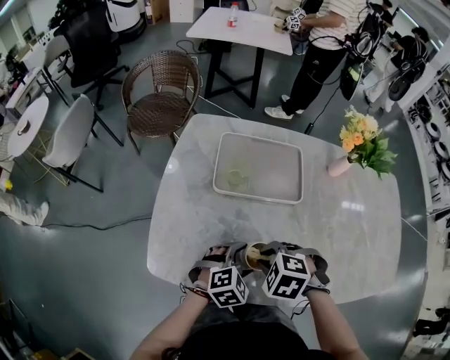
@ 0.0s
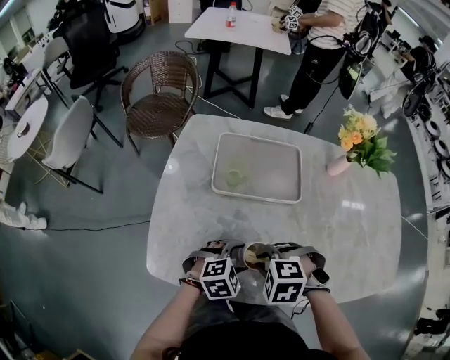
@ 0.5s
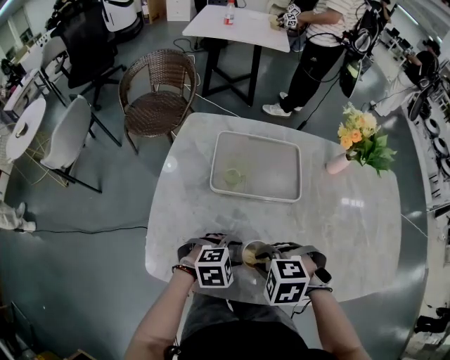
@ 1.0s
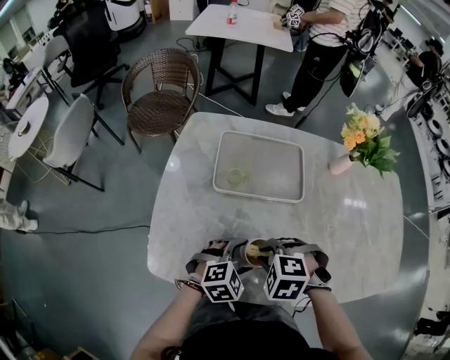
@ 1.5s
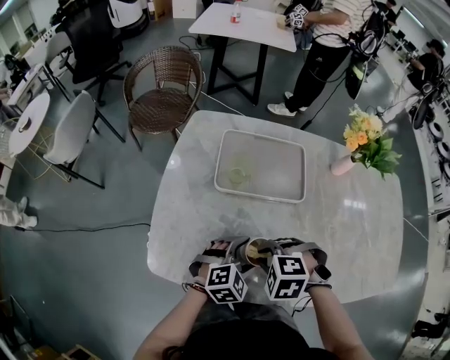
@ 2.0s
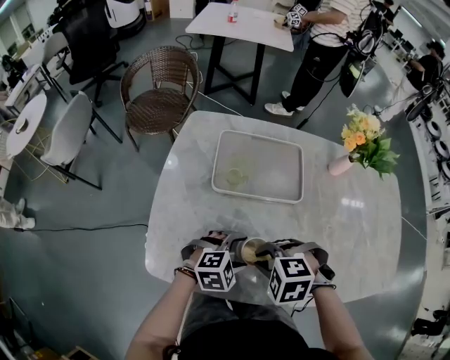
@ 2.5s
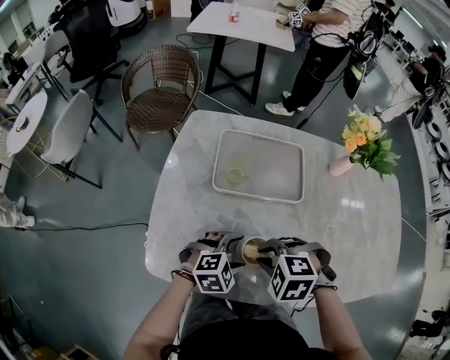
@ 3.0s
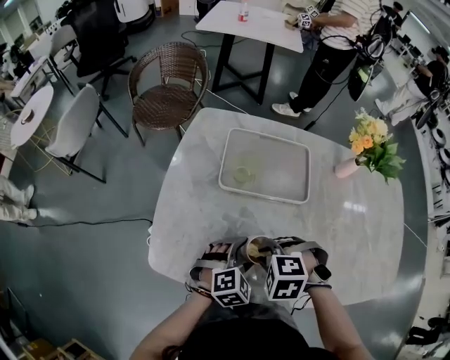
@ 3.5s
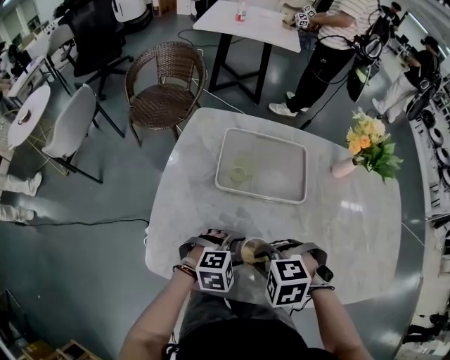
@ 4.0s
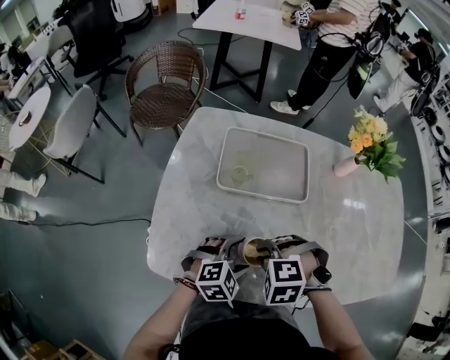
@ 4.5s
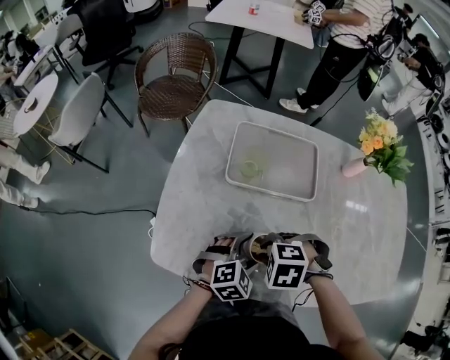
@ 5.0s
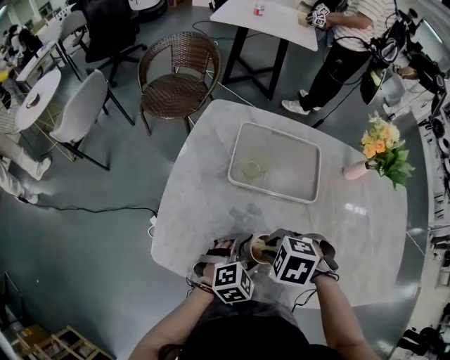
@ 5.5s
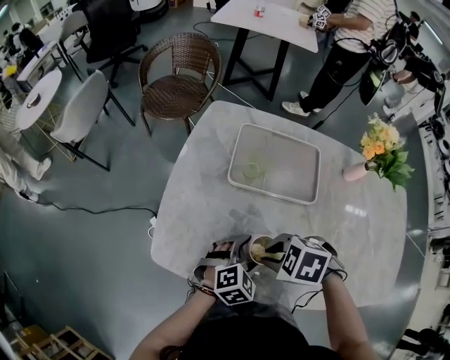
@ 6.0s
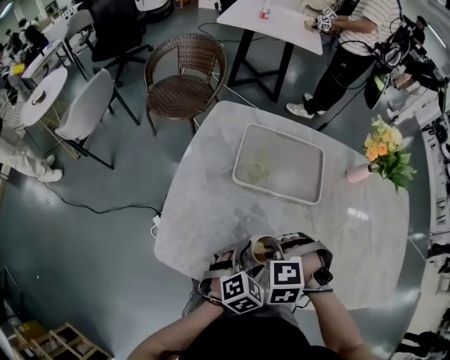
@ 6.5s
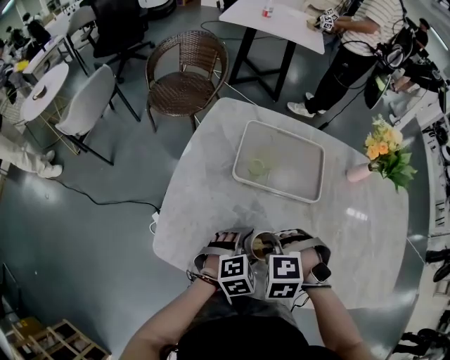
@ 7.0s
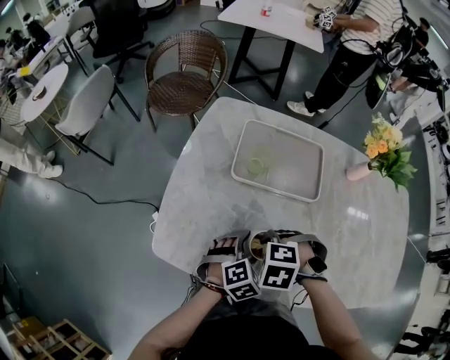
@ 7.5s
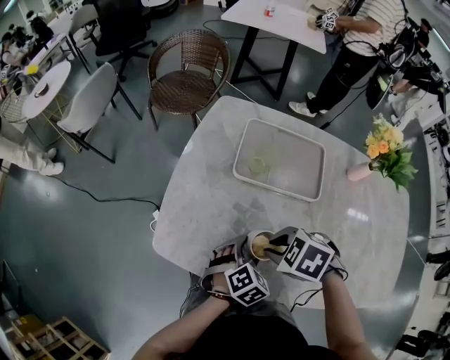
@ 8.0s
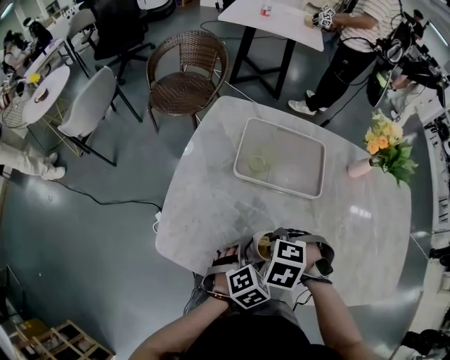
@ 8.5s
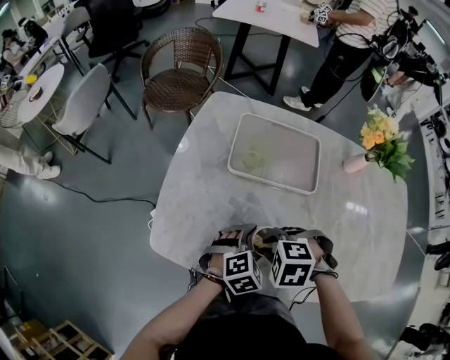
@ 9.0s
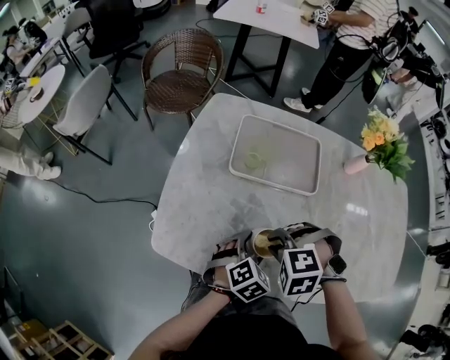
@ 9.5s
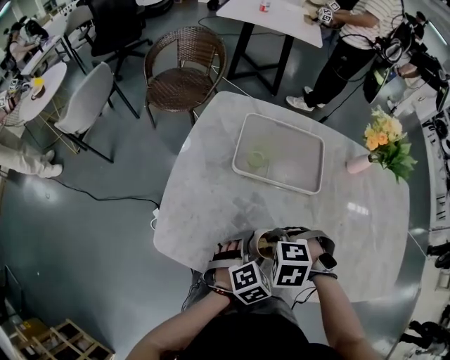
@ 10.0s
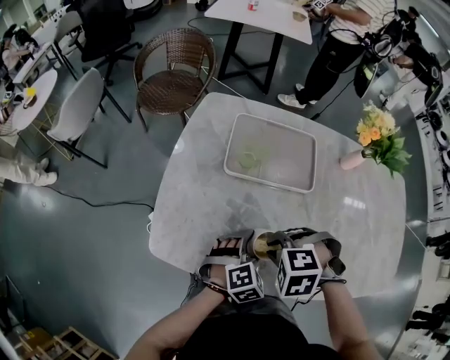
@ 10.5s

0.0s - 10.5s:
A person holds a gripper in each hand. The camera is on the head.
0.0s - 4.0s: The grippers make only small movements.
4.0s - 6.5s: The left gripper changes its angle by approximately 40 degrees.

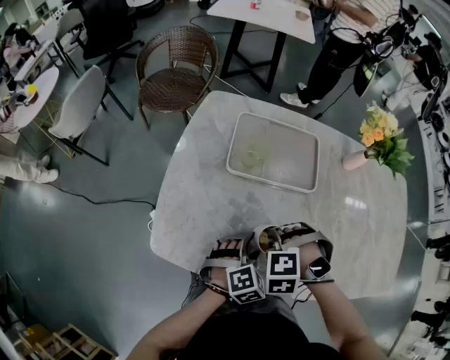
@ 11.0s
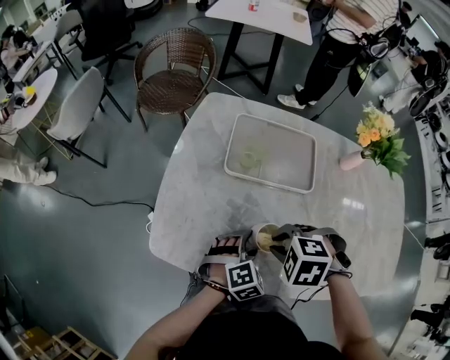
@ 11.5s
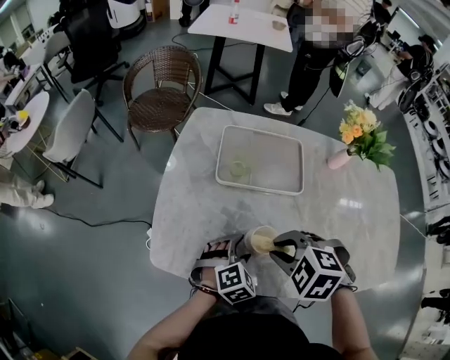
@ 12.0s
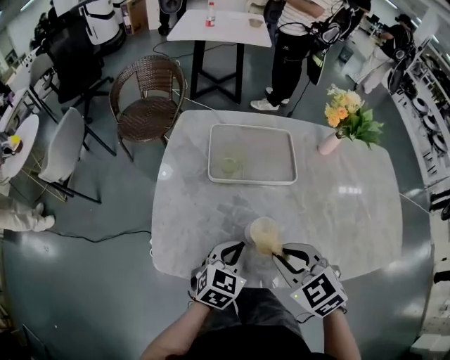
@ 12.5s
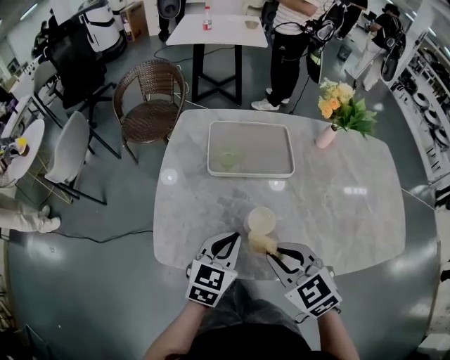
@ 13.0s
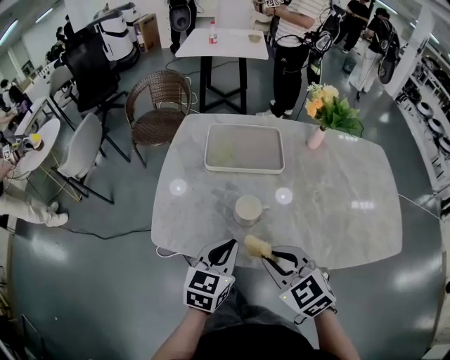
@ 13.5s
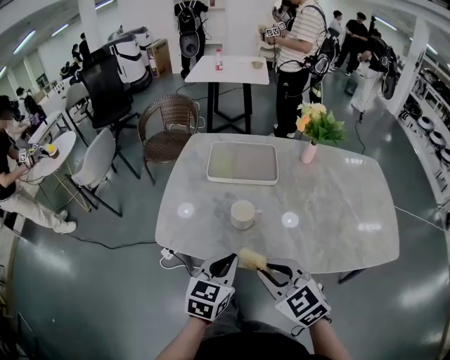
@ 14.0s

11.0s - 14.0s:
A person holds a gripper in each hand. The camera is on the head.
11.0s - 12.5s: The left gripper travels upward by approximately 5 cm, changes its angle by approximately 30 degrees, and closes its fingers; the right gripper heads upward, covering about 10 cm, and twists approximately 60 degrees clockwise, seen from behind.
12.5s - 14.0s: The right gripper heads backward, covering roughly 15 cm; the left gripper is displaced backward and upward by roughly 15 cm.

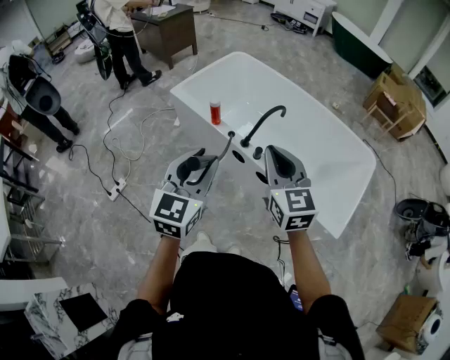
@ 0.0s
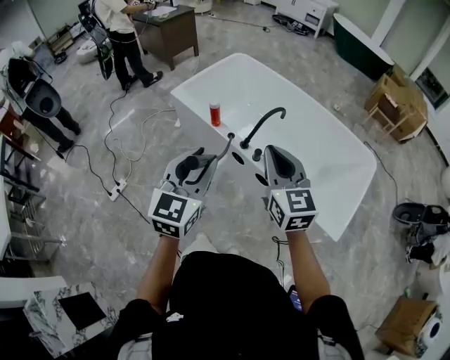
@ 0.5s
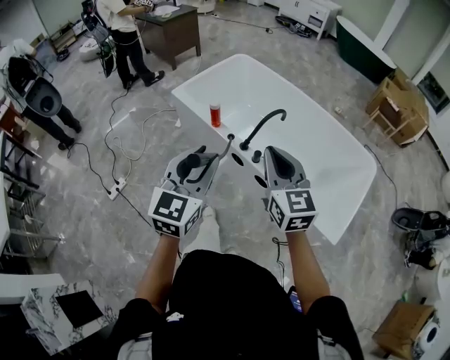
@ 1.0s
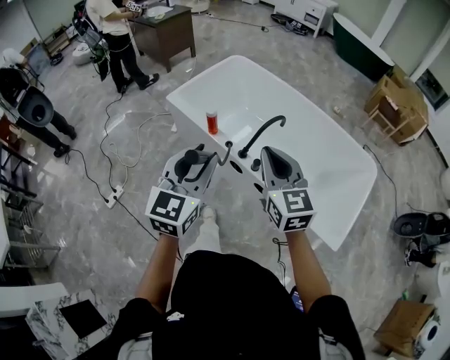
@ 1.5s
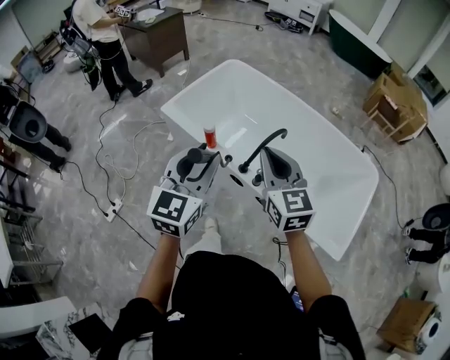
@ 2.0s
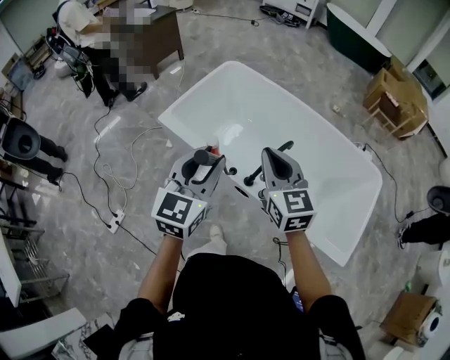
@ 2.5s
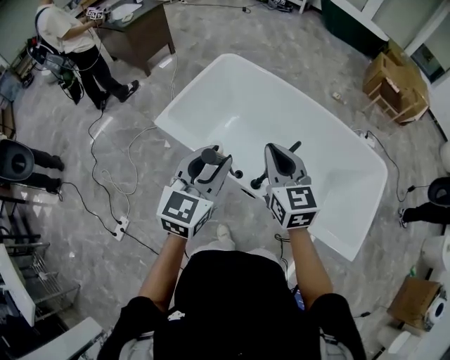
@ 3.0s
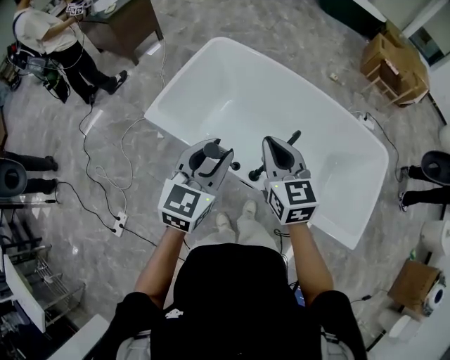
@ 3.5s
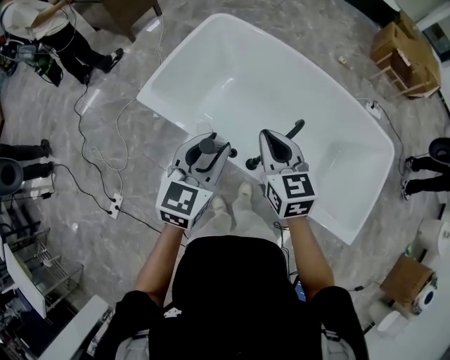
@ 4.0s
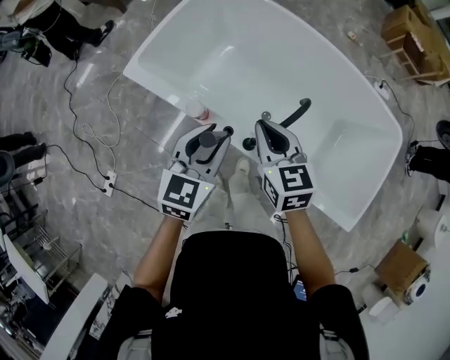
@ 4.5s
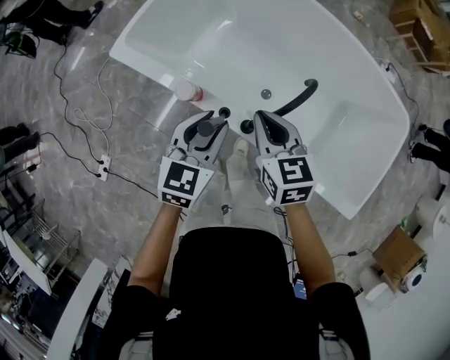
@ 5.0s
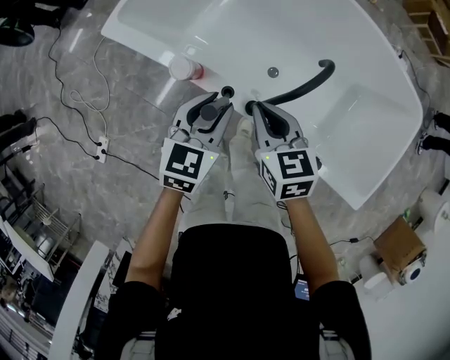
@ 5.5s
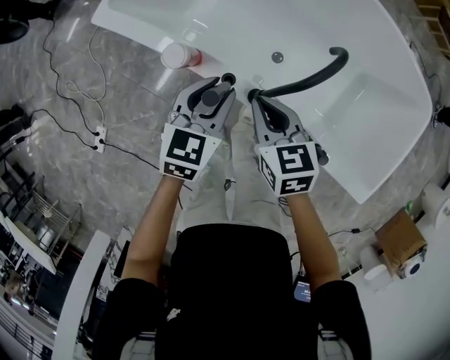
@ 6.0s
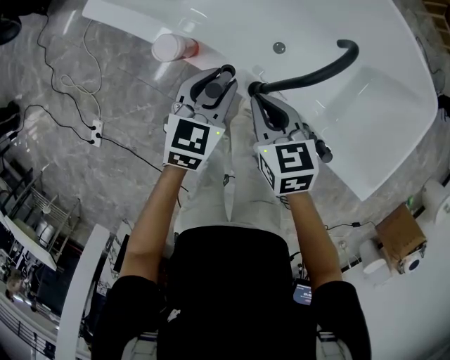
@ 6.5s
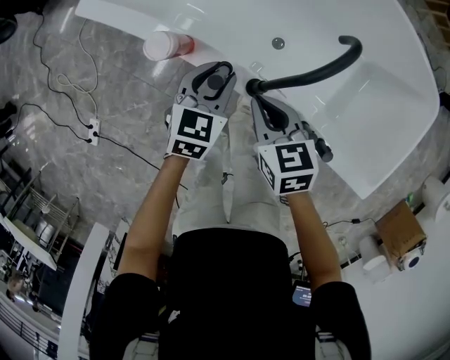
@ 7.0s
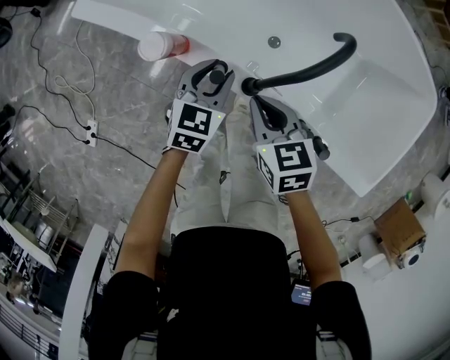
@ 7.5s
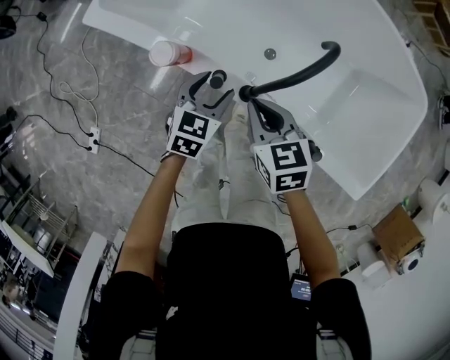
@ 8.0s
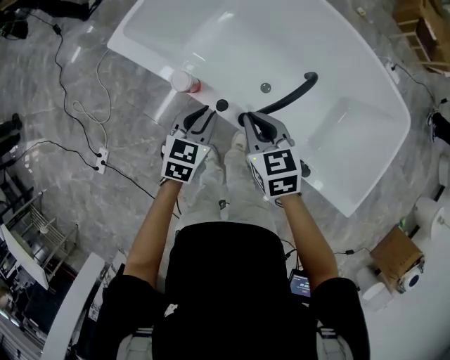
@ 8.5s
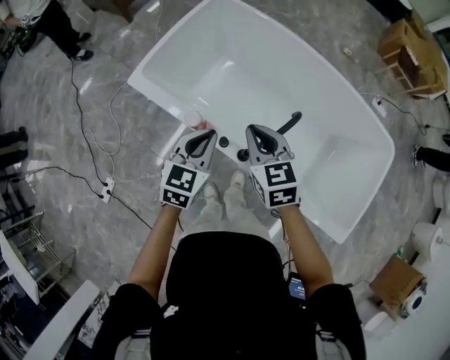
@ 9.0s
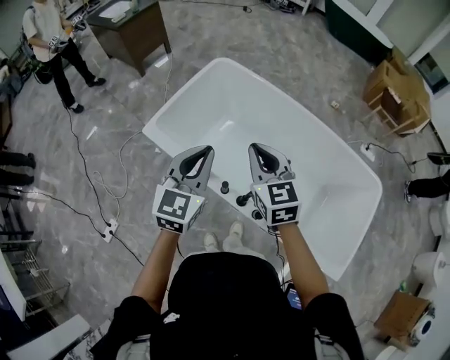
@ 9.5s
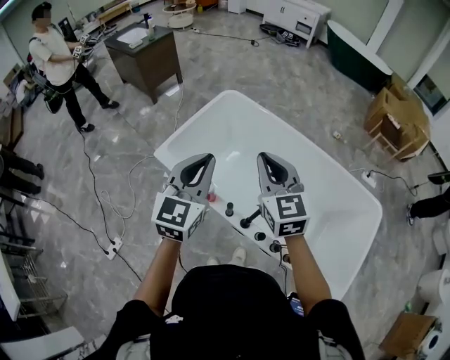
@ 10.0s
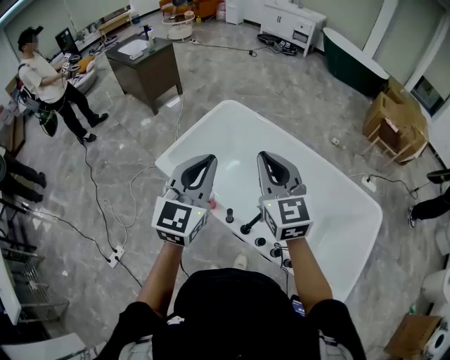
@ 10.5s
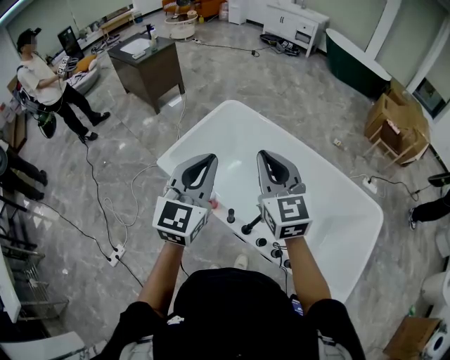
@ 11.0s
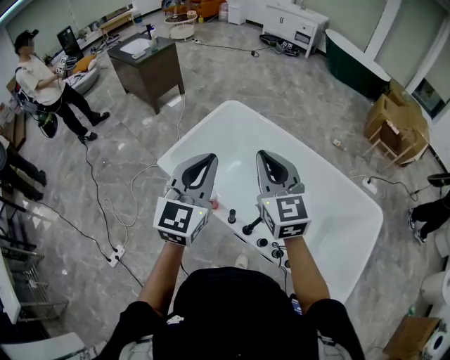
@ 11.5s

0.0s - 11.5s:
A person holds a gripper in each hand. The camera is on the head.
0.0s - 2.0s: The two grippers go roughly 20 cm forward.
2.0s - 4.0s: The two grippers go approximately 25 cm forward and downward.
4.0s - 6.0s: Both grippers travel together downward, about 25 cm. The right gripper swivels approximately 20 degrees.
6.0s - 7.5s: The left gripper moves downward, about 10 cm, while the right gripper shifts roughly 5 cm downward.
7.5s - 9.5s: The two grippers go approximately 40 cm upward. The right gripper turns by roughly 30 degrees. The left gripper rotates some 30 degrees, and closes up.
9.5s - 11.5s: The grippers both shift upward by about 15 cm.

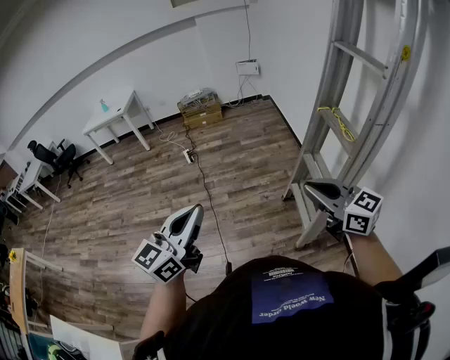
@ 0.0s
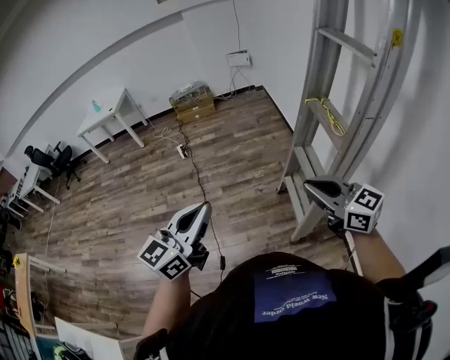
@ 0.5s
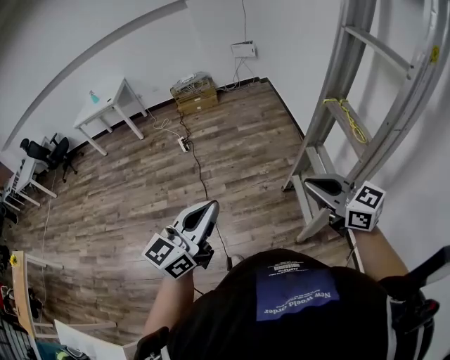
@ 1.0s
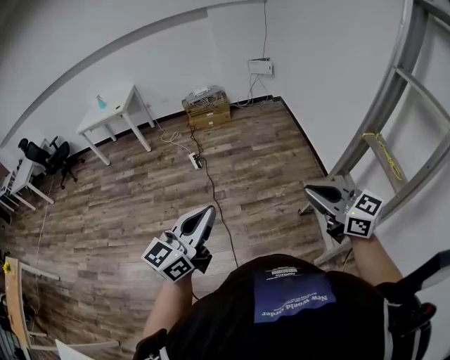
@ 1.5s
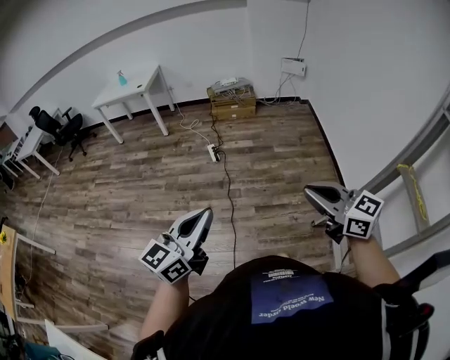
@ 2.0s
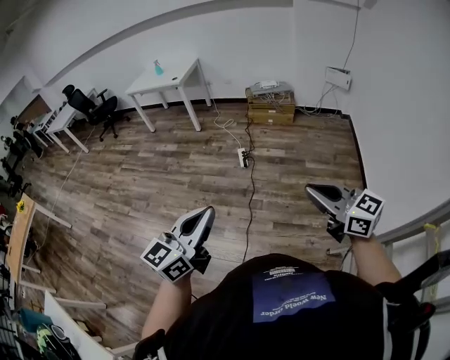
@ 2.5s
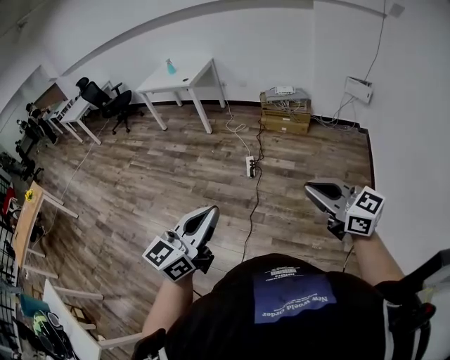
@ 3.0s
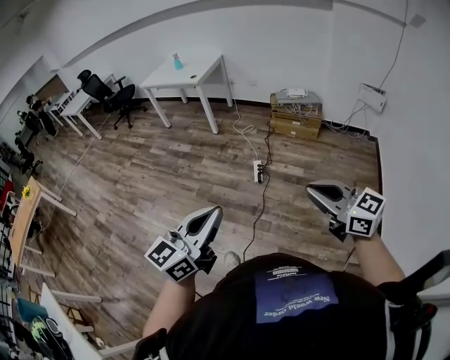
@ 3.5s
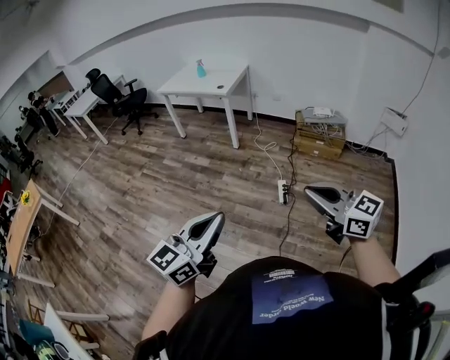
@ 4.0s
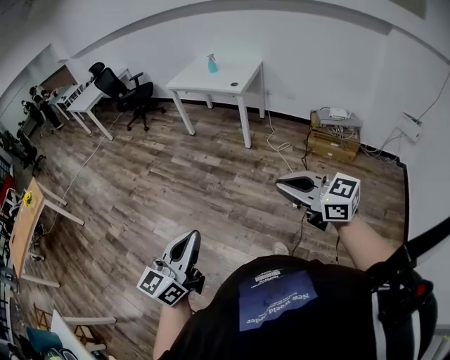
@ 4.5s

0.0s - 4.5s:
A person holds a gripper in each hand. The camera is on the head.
0.0s - 2.0s: Both grippers move forward and to the left, approximately 35 cm.
2.0s - 4.5s: The pair of grippers is taken some 60 cm. The right gripper swivels some 40 degrees; the left gripper rotates about 30 degrees.
